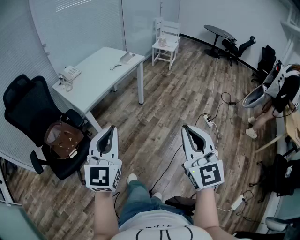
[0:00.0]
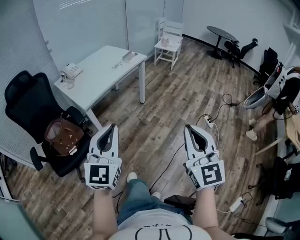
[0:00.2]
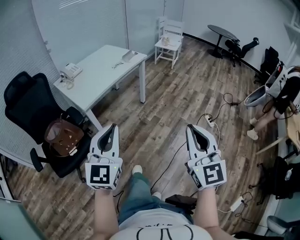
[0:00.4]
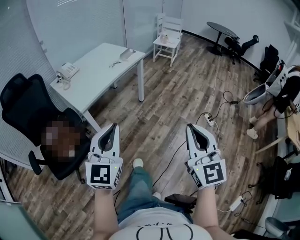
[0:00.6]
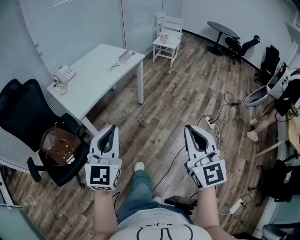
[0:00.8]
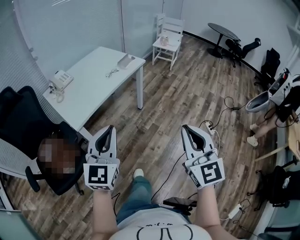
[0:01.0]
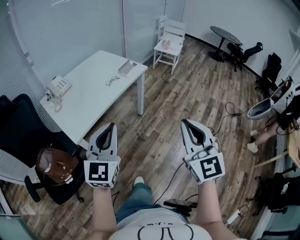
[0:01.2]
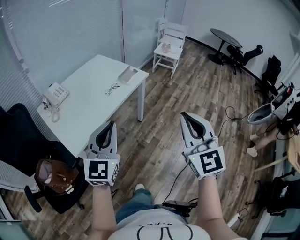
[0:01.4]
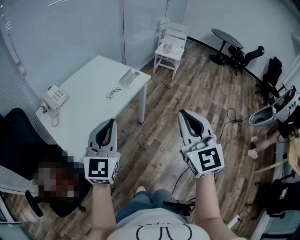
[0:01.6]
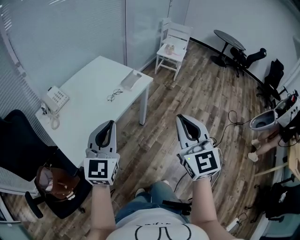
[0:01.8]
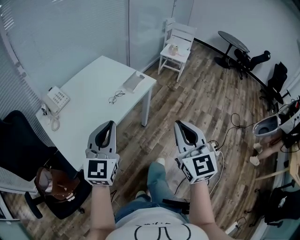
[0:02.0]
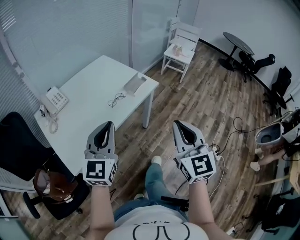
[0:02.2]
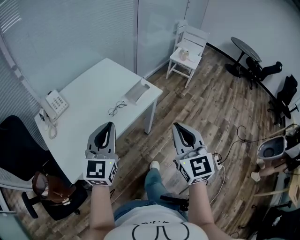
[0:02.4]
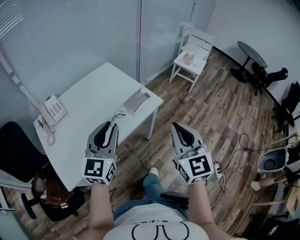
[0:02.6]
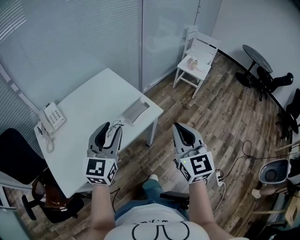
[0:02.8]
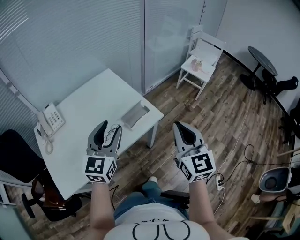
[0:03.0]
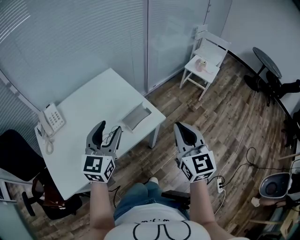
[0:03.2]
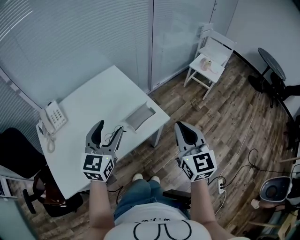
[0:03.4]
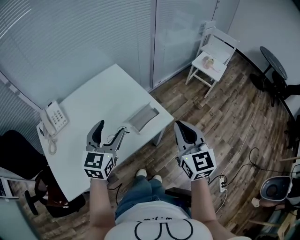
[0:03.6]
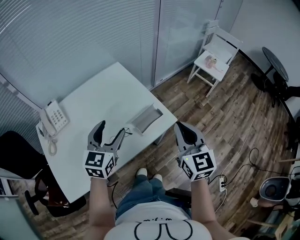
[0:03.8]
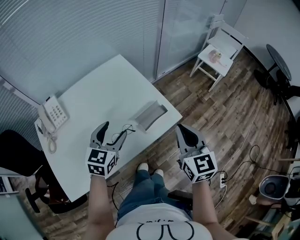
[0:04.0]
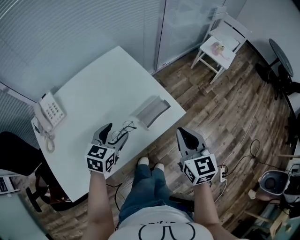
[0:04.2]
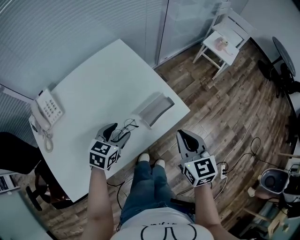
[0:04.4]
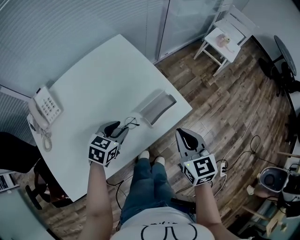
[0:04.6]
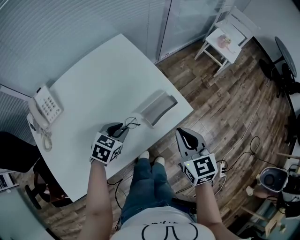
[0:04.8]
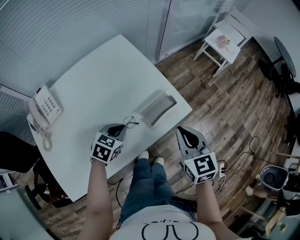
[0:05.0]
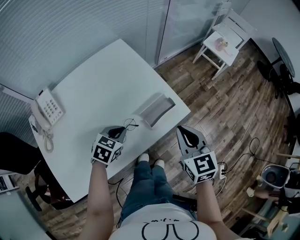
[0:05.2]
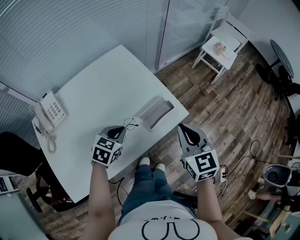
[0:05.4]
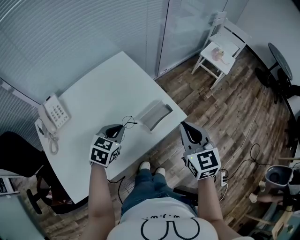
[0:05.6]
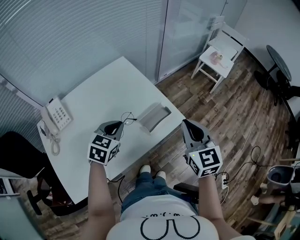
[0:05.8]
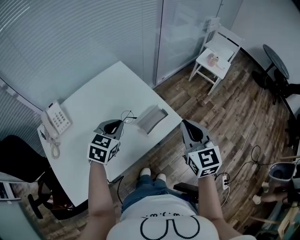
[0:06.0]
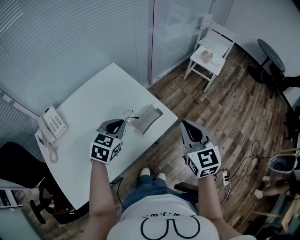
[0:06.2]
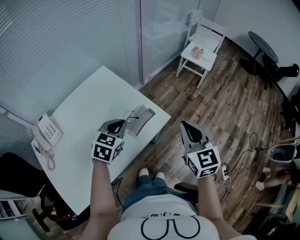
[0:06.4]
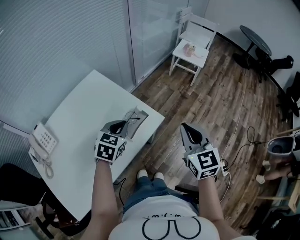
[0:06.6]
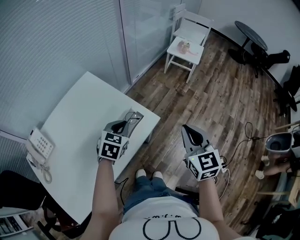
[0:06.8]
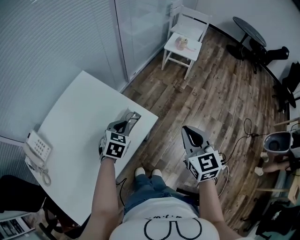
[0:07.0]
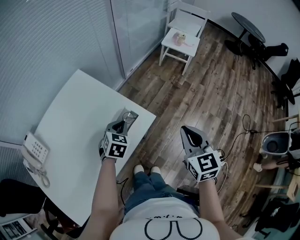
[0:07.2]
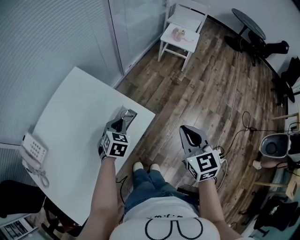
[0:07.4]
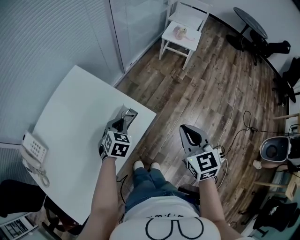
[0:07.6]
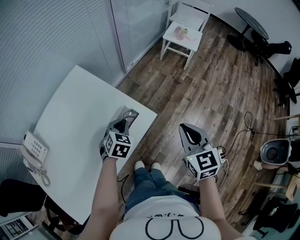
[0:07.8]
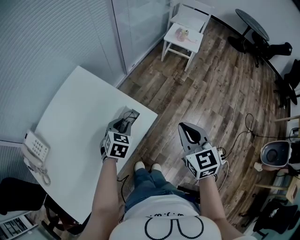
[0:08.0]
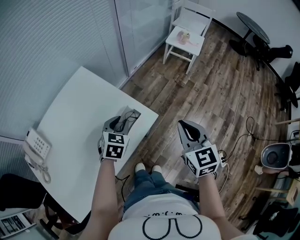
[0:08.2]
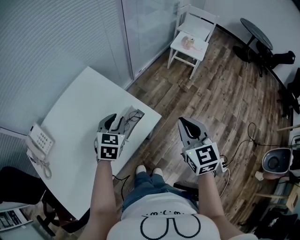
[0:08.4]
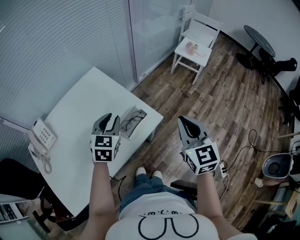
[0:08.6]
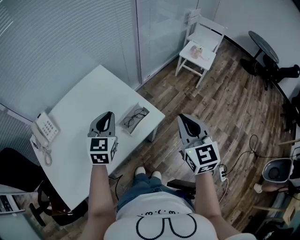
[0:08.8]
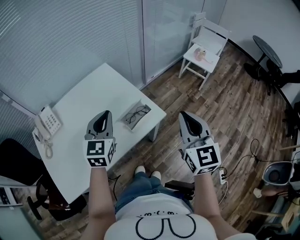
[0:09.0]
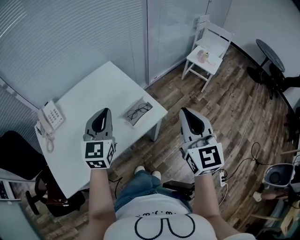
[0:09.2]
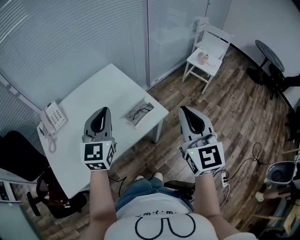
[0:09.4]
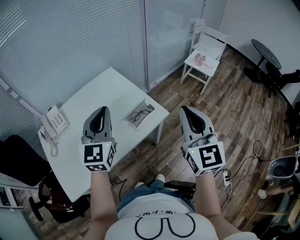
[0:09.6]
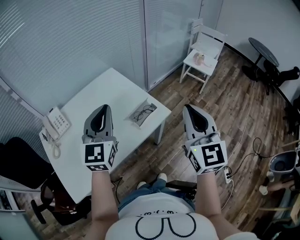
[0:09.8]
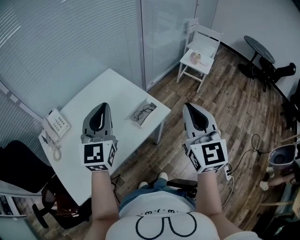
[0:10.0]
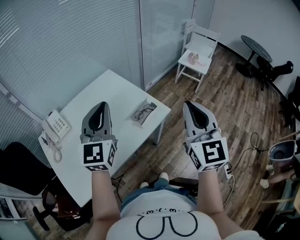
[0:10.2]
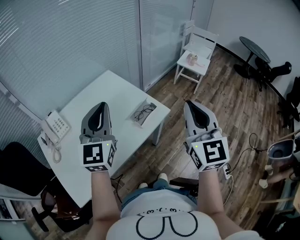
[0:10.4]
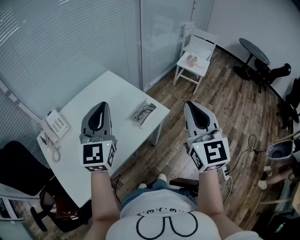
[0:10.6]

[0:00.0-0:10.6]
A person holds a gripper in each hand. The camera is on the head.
0:00.0 to 0:01.6: Both grippers are carried forward, roughly 40 cm.
0:01.6 to 0:03.0: The grippers both shift forward by roughly 35 cm. The left gripper opens its fingers.
0:03.0 to 0:04.6: The left gripper heads downward and forward, covering some 25 cm, tips its fingers downward by approximately 40 degrees, and opens and closes again; the right gripper travels downward, forward and to the left by about 20 cm, and turns by some 30 degrees.
0:04.6 to 0:06.0: The two grippers go some 10 cm upward. The left gripper closes its fingers.
0:06.0 to 0:07.6: The left gripper moves to the right, downward and forward, some 20 cm; the right gripper heads to the right and downward, covering some 15 cm.
0:07.6 to 0:09.0: The left gripper shifts some 25 cm upward, backward and to the left, and tips its fingers upward by about 30 degrees, while the right gripper moves upward, some 10 cm, and rotates approximately 20 degrees.
0:09.0 to 0:10.6: Both grippers travel together upward, backward and to the left, some 15 cm.

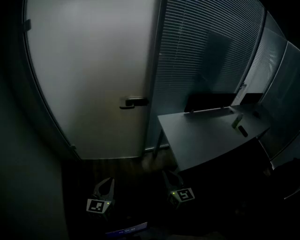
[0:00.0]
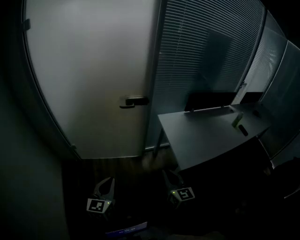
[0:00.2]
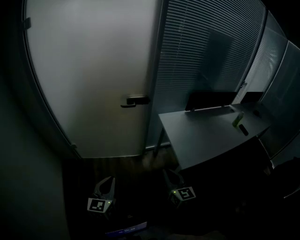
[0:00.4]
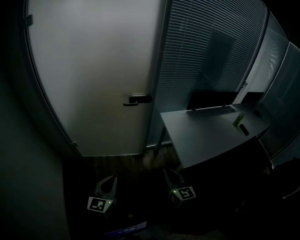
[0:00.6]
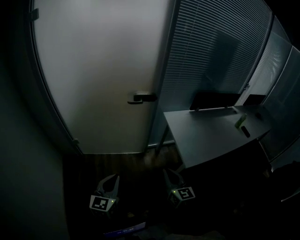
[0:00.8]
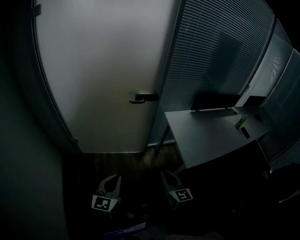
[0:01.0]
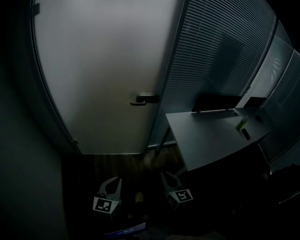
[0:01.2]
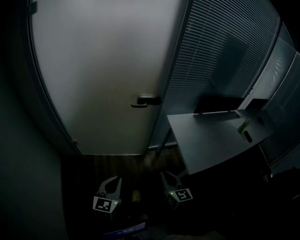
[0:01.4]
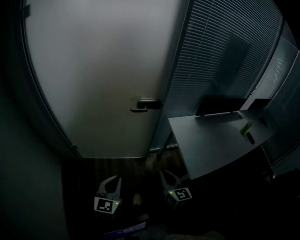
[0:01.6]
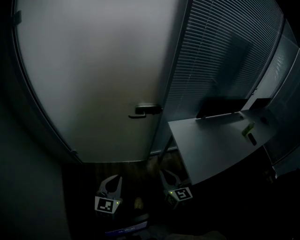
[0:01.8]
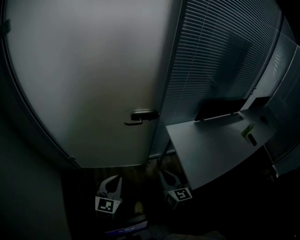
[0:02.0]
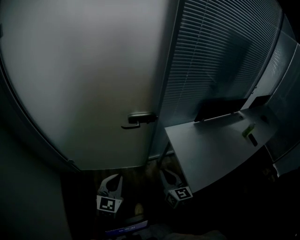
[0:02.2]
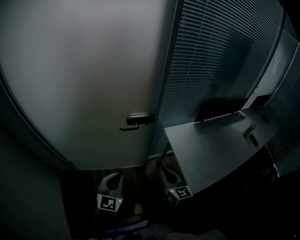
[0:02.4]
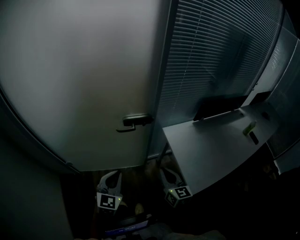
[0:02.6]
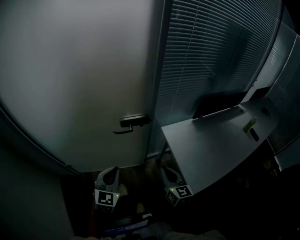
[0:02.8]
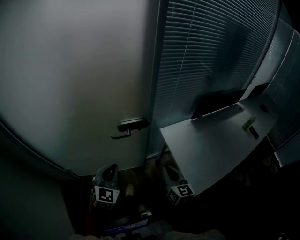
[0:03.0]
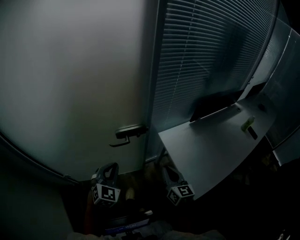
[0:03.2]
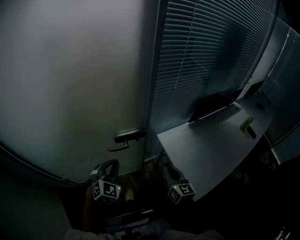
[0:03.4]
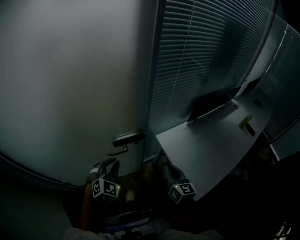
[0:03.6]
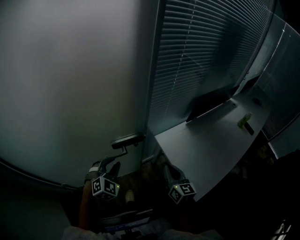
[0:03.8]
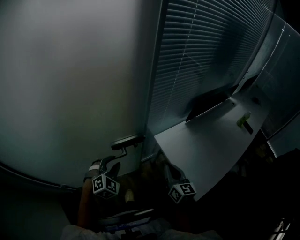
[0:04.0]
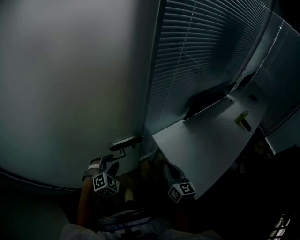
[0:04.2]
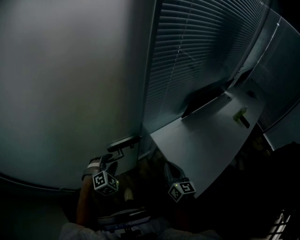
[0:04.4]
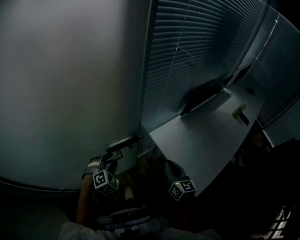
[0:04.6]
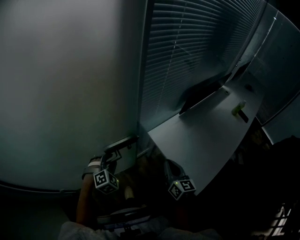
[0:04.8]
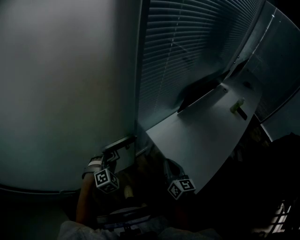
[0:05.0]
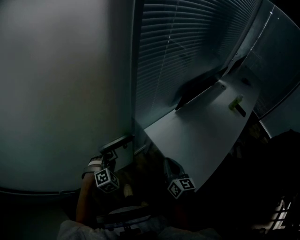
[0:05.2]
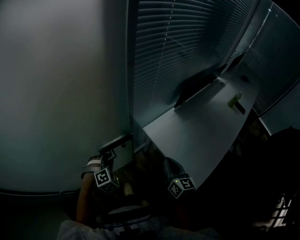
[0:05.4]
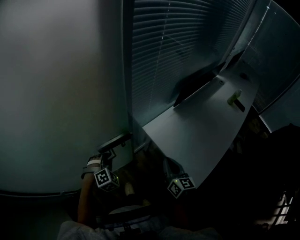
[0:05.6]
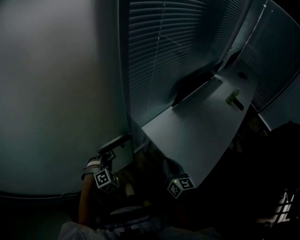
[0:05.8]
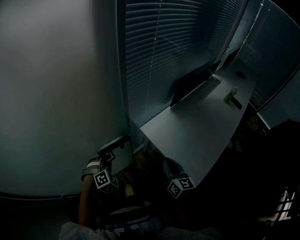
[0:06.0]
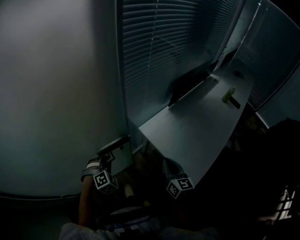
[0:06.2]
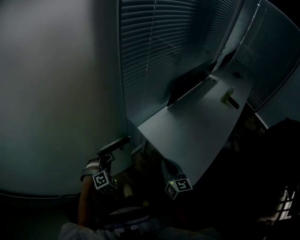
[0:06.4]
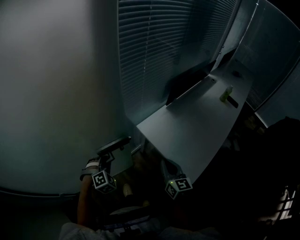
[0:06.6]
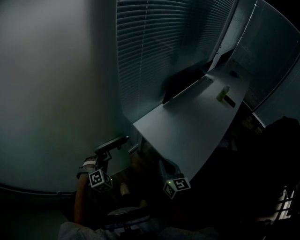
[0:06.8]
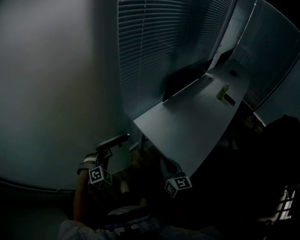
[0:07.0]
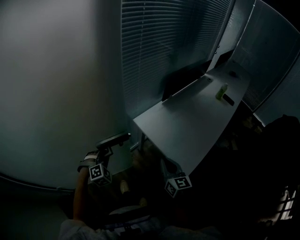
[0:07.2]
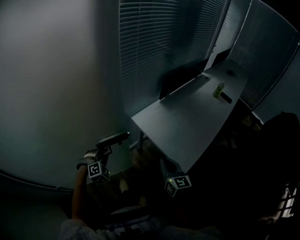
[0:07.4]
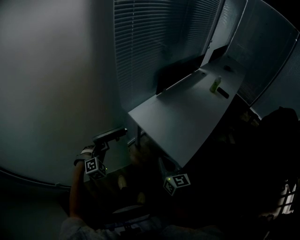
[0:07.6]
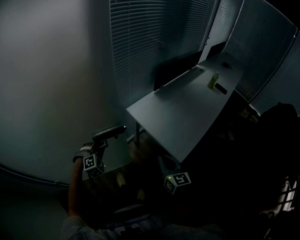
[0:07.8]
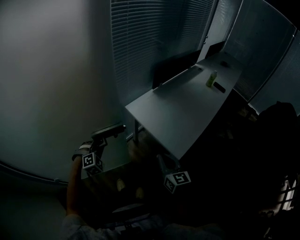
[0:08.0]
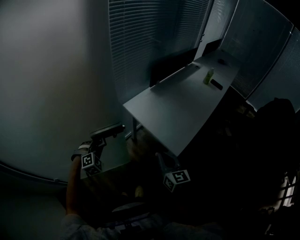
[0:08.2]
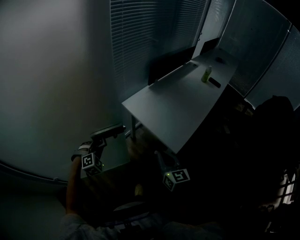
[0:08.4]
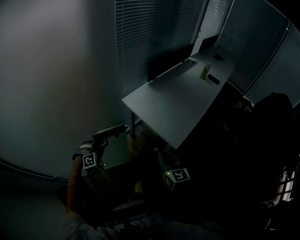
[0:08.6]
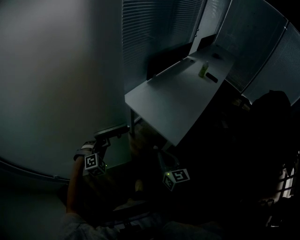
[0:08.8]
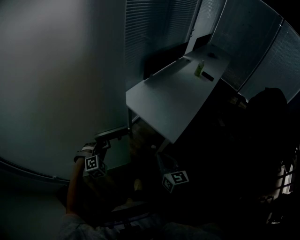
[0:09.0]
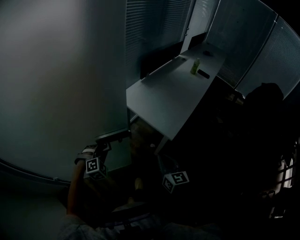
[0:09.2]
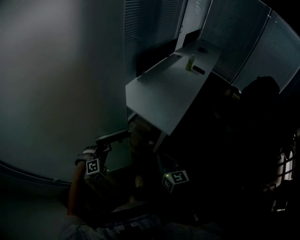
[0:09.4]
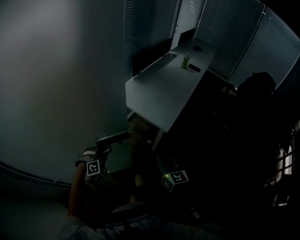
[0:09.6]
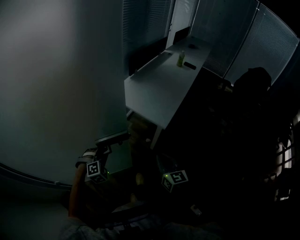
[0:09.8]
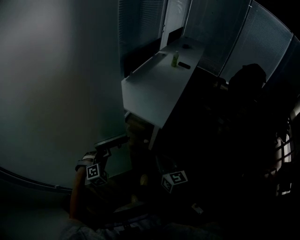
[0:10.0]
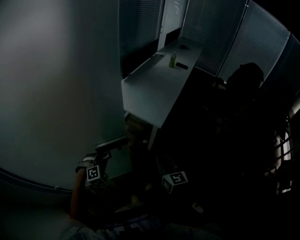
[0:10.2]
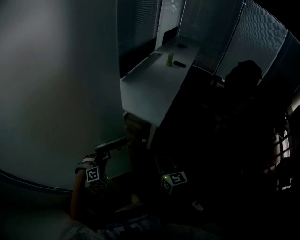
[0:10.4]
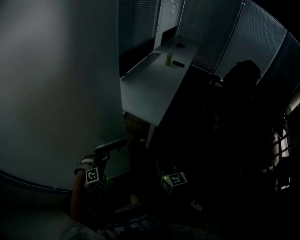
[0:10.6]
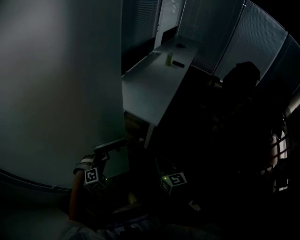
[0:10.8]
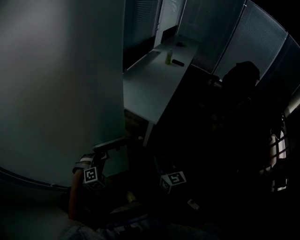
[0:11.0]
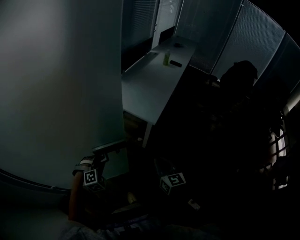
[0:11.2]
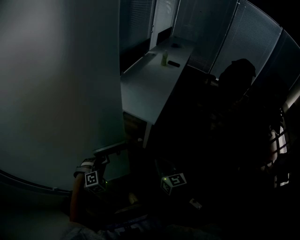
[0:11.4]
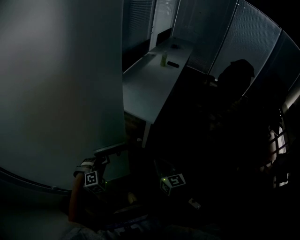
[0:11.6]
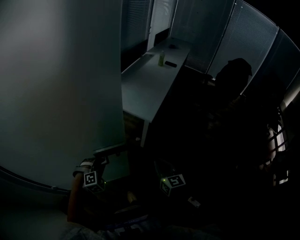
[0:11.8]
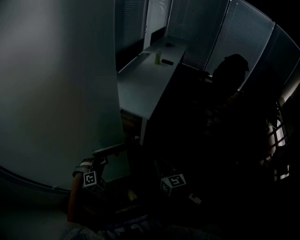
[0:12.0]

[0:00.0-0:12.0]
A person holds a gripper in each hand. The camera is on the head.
0:00.0 to 0:01.6: The left gripper goes about 10 cm forward. Meanwhile the right gripper travels forward and to the left by about 15 cm.
0:01.6 to 0:03.0: The two grippers go some 25 cm forward. The left gripper turns by approximately 20 degrees.
0:03.0 to 0:04.4: The left gripper heads forward and downward, covering roughly 20 cm, turns by about 40 degrees, and opens up. Meanwhile the right gripper shifts approximately 10 cm forward.
0:04.4 to 0:06.0: The left gripper ends up about 5 cm from where it was, and closes its fingers.
0:06.0 to 0:07.6: Both grippers travel together backward, about 15 cm.
0:07.6 to 0:09.0: The grippers both shift backward by roughly 15 cm.
0:09.0 to 0:10.4: Both grippers move backward, some 15 cm.
0:10.4 to 0:12.0: The grippers both shift backward by some 10 cm.

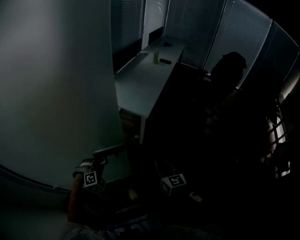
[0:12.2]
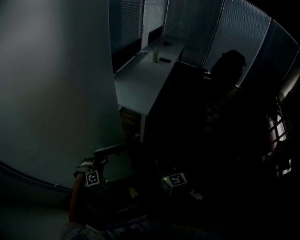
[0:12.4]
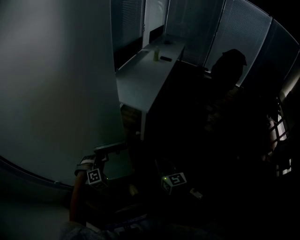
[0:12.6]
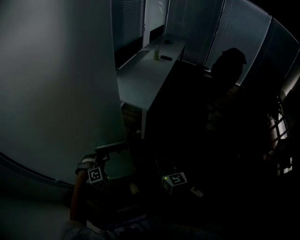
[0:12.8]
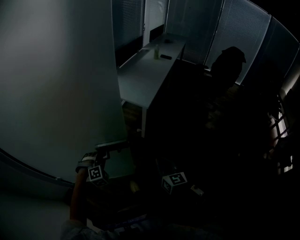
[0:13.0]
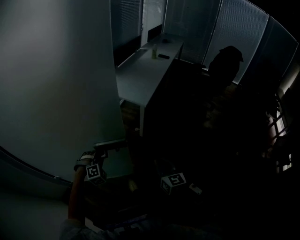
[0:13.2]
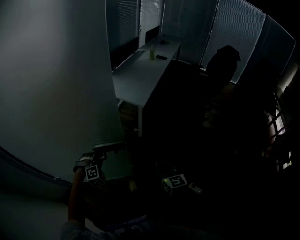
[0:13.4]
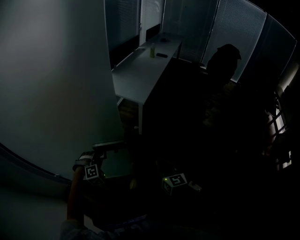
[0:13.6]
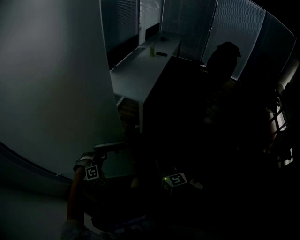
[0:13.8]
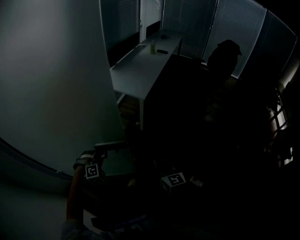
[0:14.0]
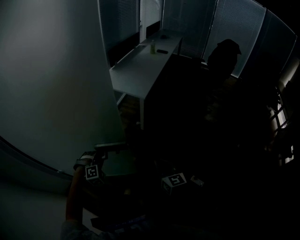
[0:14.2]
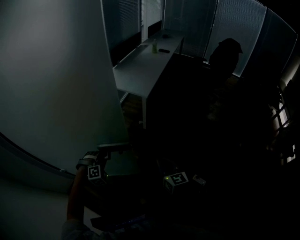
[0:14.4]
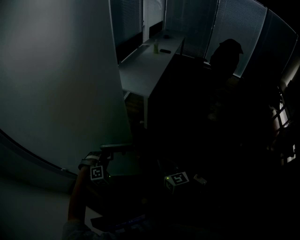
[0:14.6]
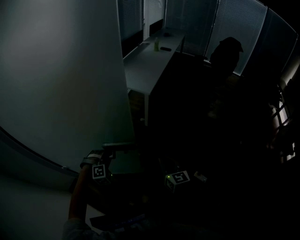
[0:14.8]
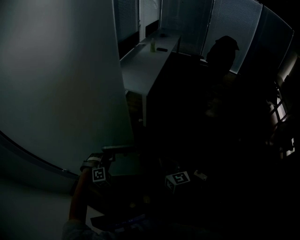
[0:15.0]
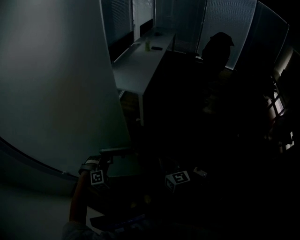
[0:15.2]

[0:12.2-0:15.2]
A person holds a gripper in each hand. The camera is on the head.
0:12.2 to 0:13.8: The grippers both shift backward by about 15 cm.
0:13.8 to 0:15.2: Both grippers move backward, some 10 cm.
